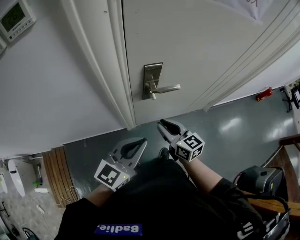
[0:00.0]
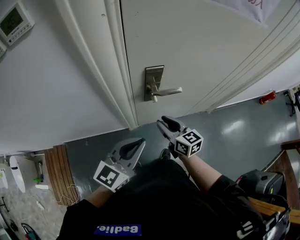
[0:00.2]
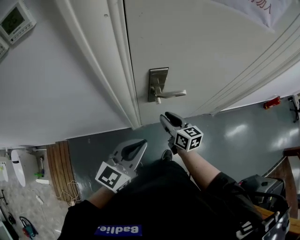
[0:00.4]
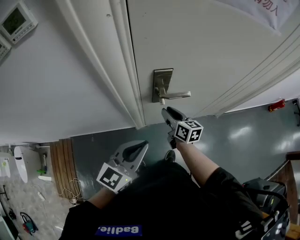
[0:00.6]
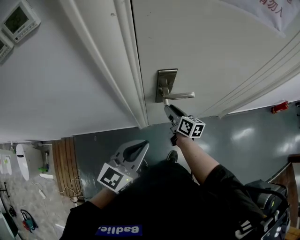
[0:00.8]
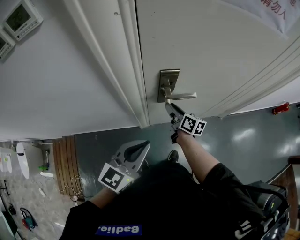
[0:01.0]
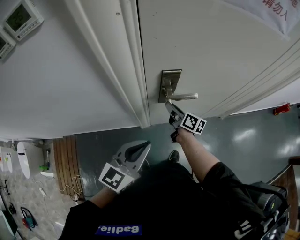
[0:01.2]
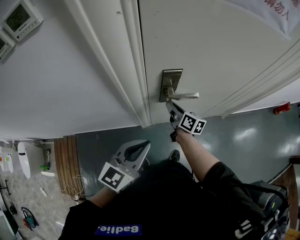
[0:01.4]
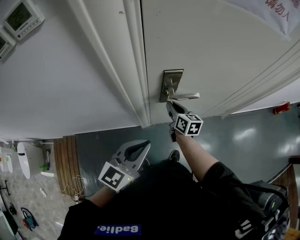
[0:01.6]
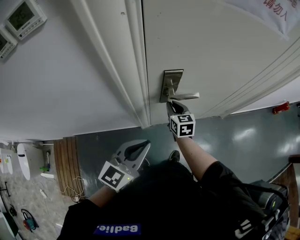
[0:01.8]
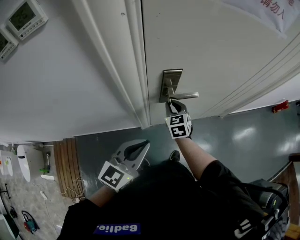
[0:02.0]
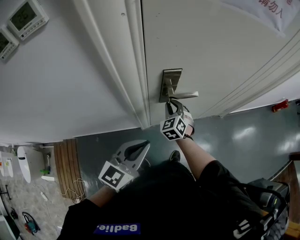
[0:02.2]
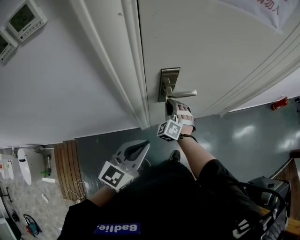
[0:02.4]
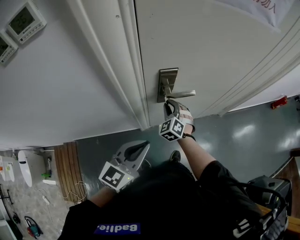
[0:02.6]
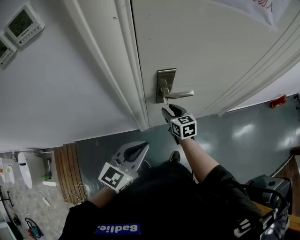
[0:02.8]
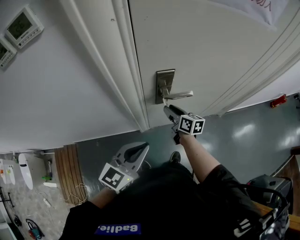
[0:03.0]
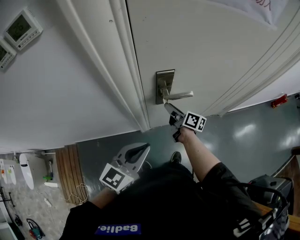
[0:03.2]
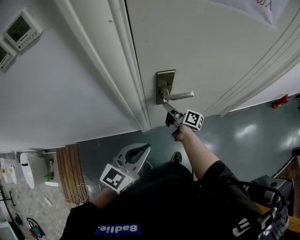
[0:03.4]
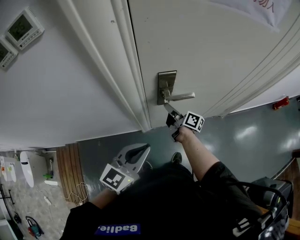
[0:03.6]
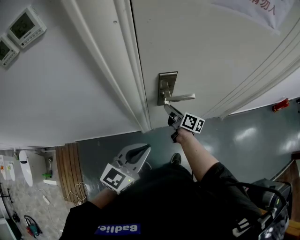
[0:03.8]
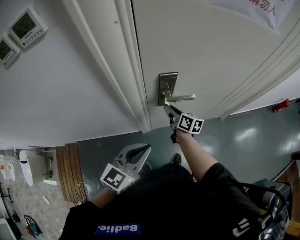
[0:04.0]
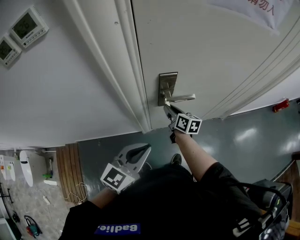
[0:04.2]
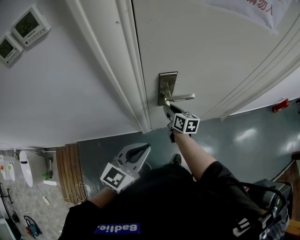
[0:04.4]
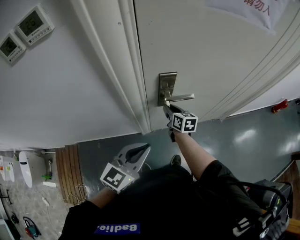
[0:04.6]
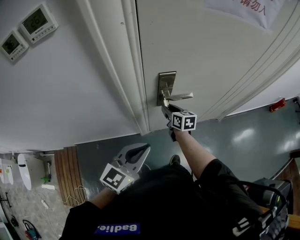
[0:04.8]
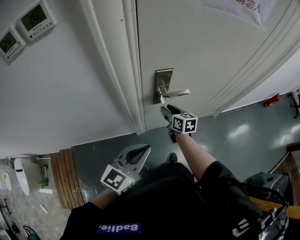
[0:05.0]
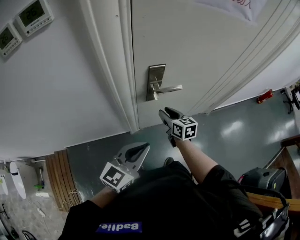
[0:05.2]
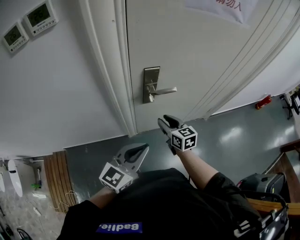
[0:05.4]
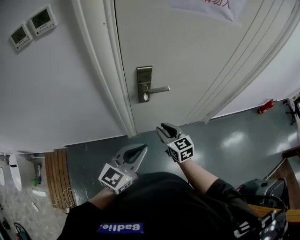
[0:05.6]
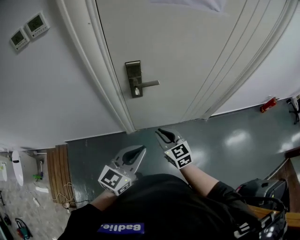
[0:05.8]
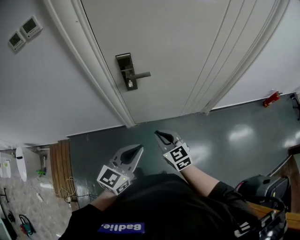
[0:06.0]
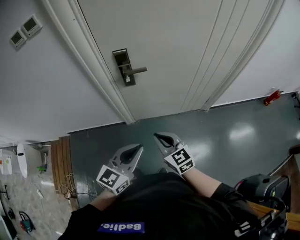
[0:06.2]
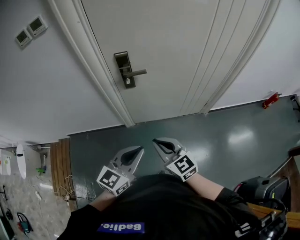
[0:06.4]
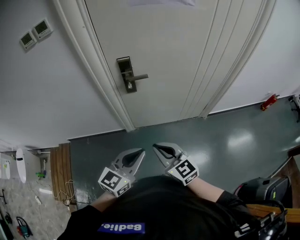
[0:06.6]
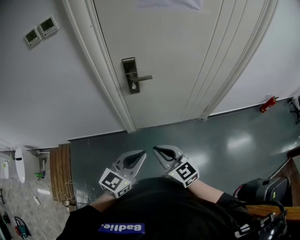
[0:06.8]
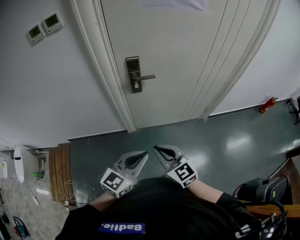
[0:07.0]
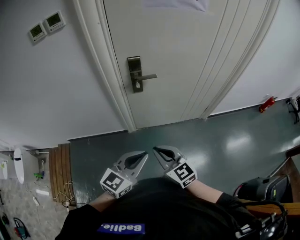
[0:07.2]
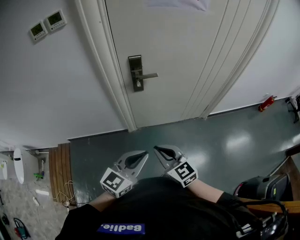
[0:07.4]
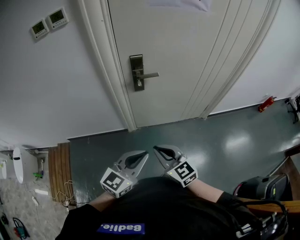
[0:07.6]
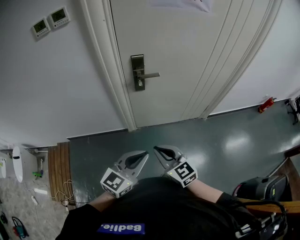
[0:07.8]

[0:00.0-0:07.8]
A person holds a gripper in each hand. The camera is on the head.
0:00.0 to 0:01.6: The right gripper is displaced forward and downward by about 15 cm.
0:01.6 to 0:03.2: The right gripper swivels about 30 degrees.
0:03.2 to 0:04.6: The right gripper turns by approximately 30 degrees.
0:04.6 to 0:06.2: The left gripper moves to the right and backward, roughly 25 cm; the right gripper shifts roughly 40 cm backward and to the right, and rotates approximately 40 degrees.
0:06.2 to 0:07.8: The right gripper travels backward and to the left by some 10 cm, while the left gripper is displaced to the left and backward by approximately 10 cm.

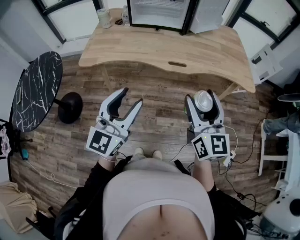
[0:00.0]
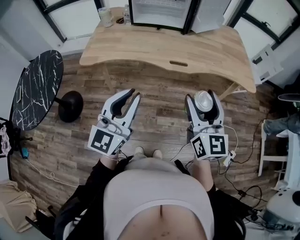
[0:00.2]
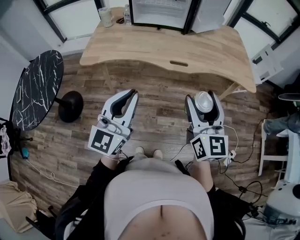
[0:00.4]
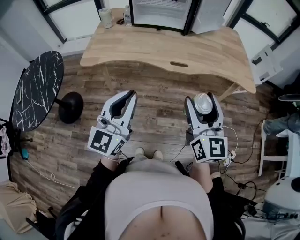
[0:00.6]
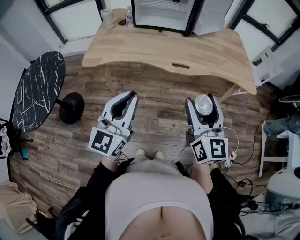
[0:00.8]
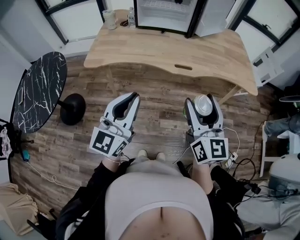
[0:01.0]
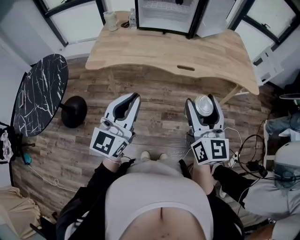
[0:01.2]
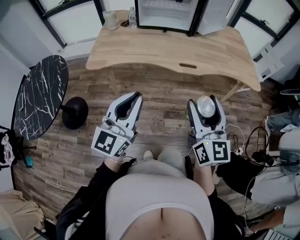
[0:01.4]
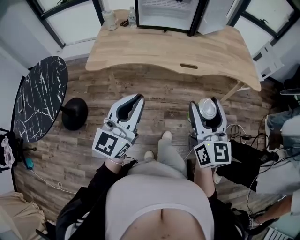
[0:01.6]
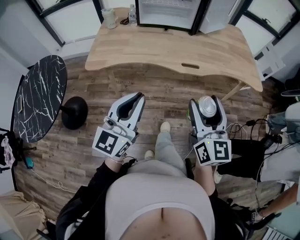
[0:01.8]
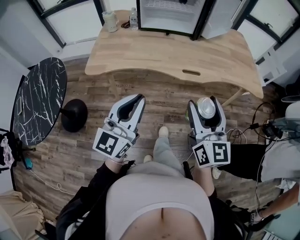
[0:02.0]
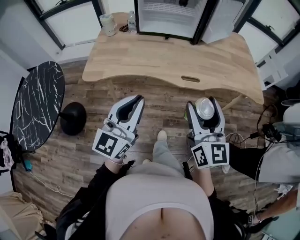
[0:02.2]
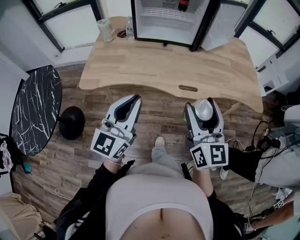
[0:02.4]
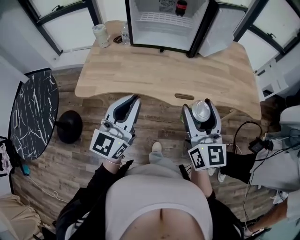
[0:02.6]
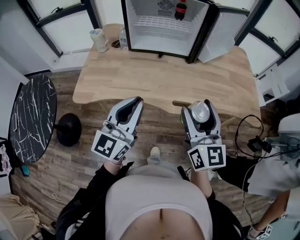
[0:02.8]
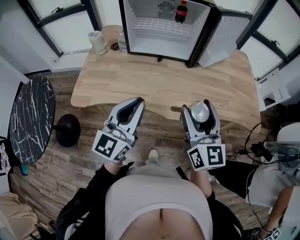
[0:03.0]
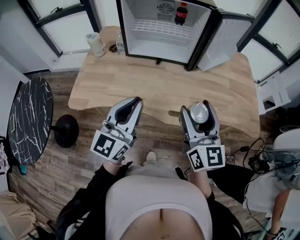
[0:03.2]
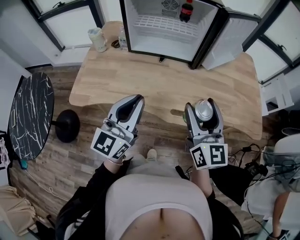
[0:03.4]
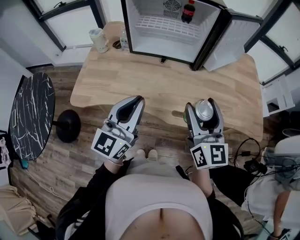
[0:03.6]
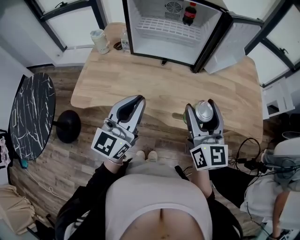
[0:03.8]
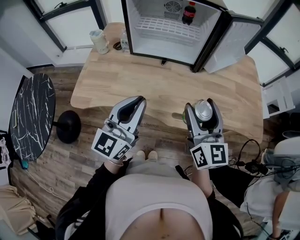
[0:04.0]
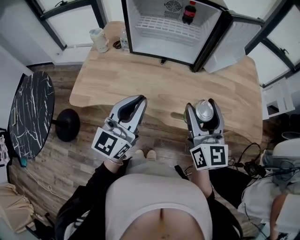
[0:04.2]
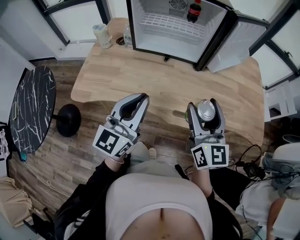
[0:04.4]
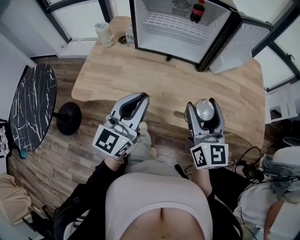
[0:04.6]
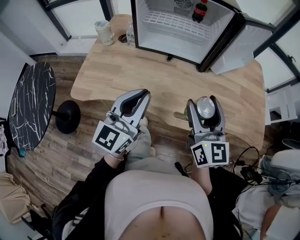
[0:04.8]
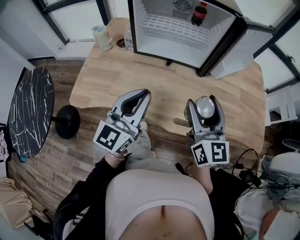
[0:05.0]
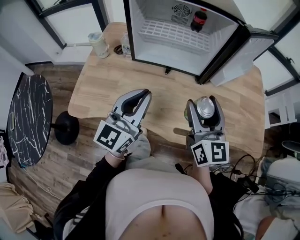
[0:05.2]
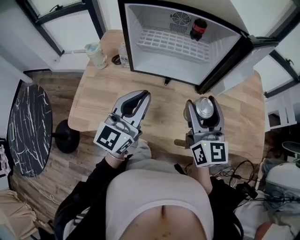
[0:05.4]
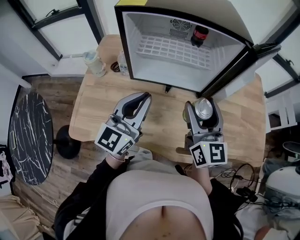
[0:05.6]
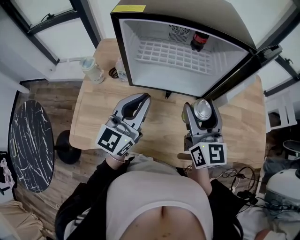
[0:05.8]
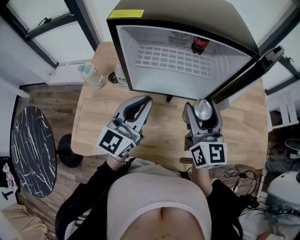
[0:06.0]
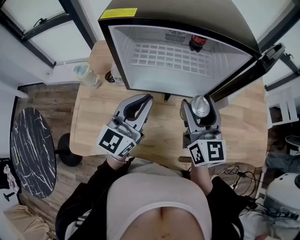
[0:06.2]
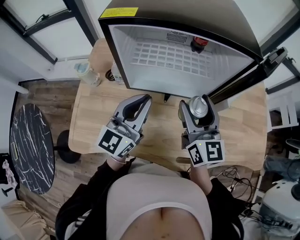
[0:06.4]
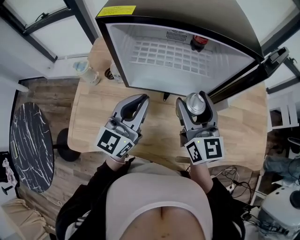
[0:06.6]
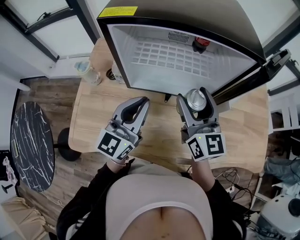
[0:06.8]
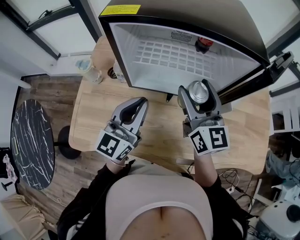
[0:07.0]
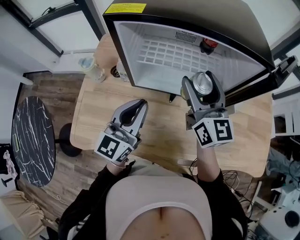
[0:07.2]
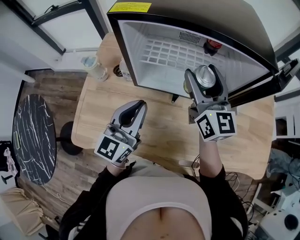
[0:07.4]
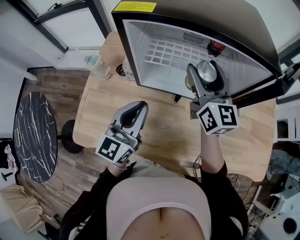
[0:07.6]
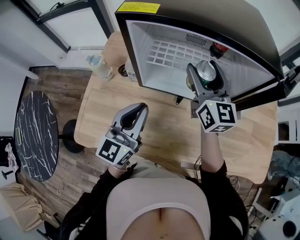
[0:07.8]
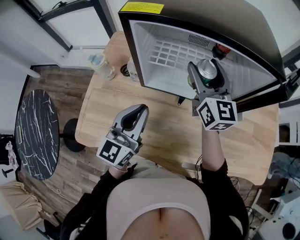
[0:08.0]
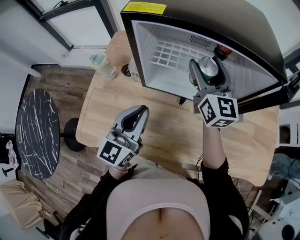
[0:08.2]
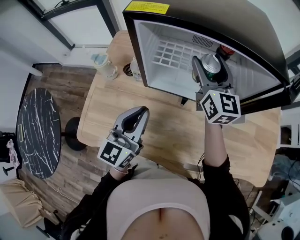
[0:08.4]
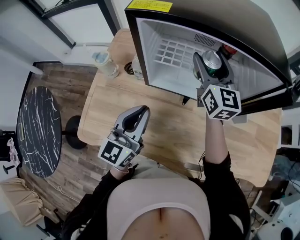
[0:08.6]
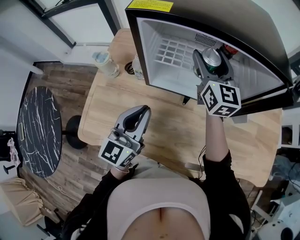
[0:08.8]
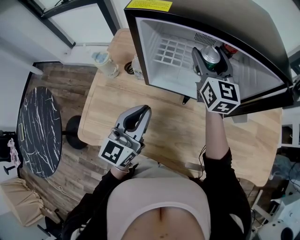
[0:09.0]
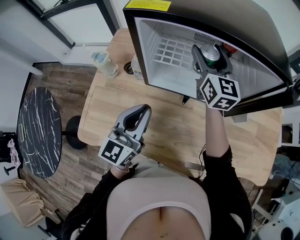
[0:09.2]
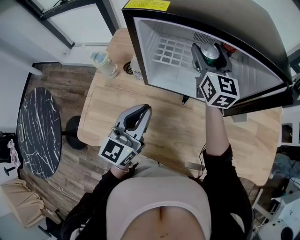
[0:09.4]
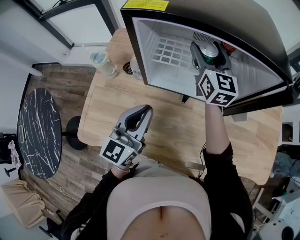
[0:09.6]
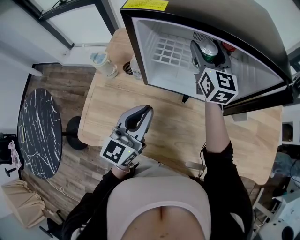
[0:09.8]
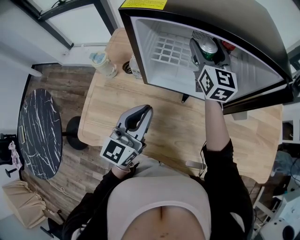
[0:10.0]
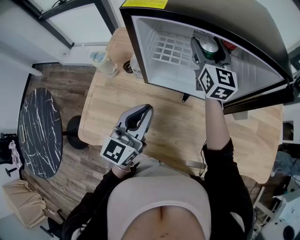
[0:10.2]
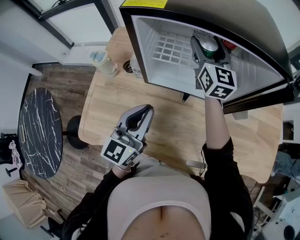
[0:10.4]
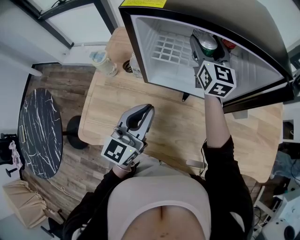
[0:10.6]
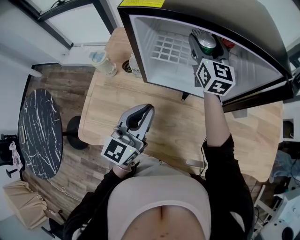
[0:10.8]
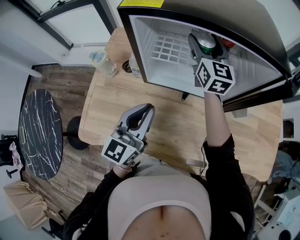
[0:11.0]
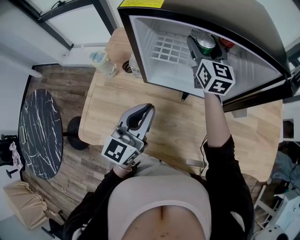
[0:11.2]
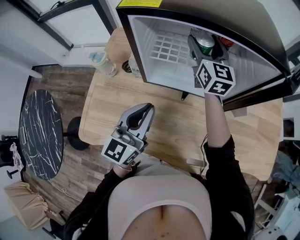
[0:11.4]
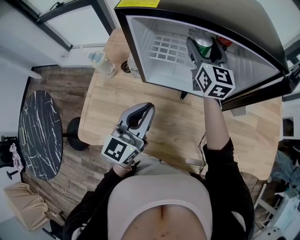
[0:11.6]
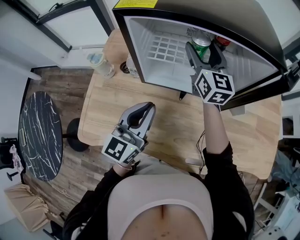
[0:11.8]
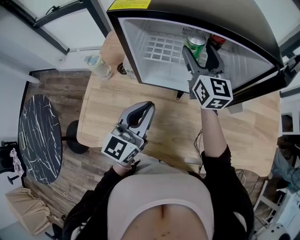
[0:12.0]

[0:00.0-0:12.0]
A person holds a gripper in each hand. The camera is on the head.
0:00.0 to 0:01.6: The grippers both shift to the left by about 5 cm. The left gripper closes its fingers.
0:01.6 to 0:03.0: The two grippers go about 25 cm forward.
0:03.0 to 0:04.4: The right gripper is displaced forward by some 5 cm.
0:04.4 to 0:06.0: Both grippers move forward, approximately 25 cm.
0:06.0 to 0:07.6: The right gripper shifts approximately 15 cm forward.
0:07.6 to 0:09.0: The right gripper heads forward, covering about 5 cm.
0:09.0 to 0:10.4: The grippers move only a little.
0:10.4 to 0:12.0: The right gripper moves approximately 5 cm.

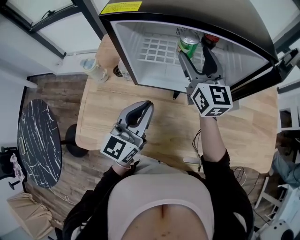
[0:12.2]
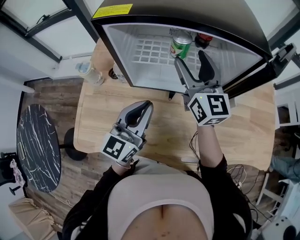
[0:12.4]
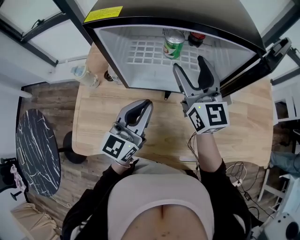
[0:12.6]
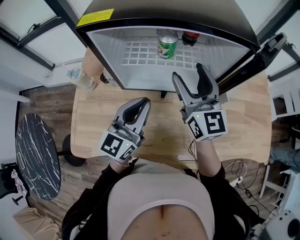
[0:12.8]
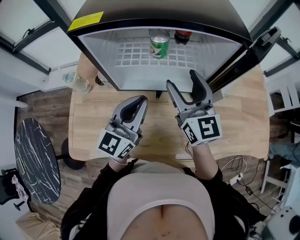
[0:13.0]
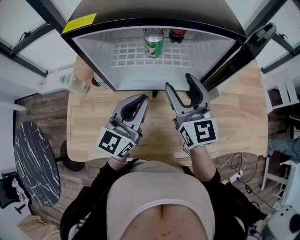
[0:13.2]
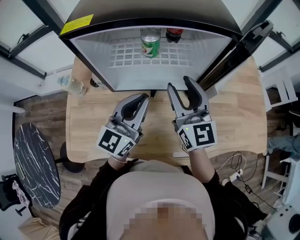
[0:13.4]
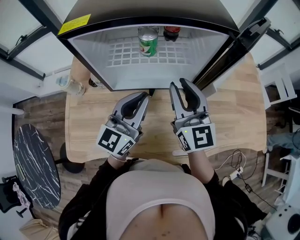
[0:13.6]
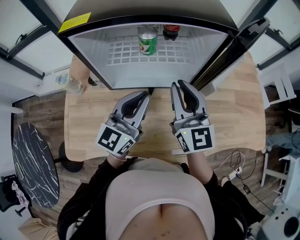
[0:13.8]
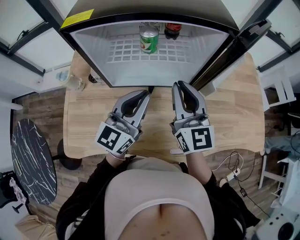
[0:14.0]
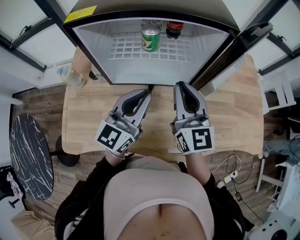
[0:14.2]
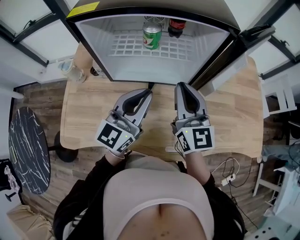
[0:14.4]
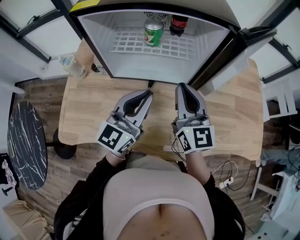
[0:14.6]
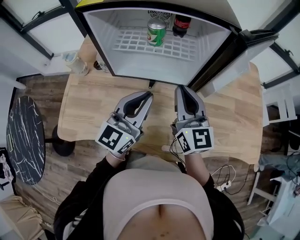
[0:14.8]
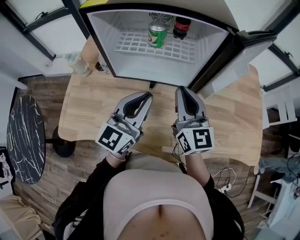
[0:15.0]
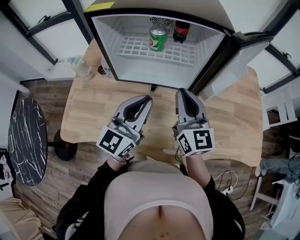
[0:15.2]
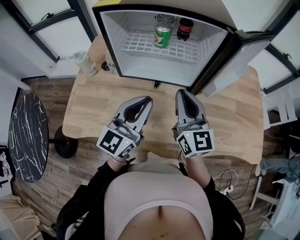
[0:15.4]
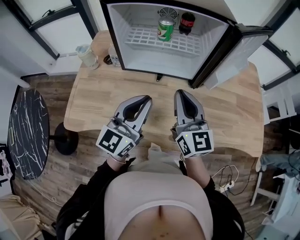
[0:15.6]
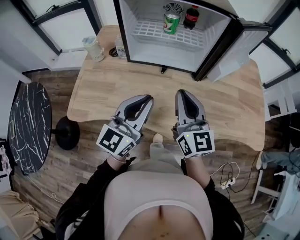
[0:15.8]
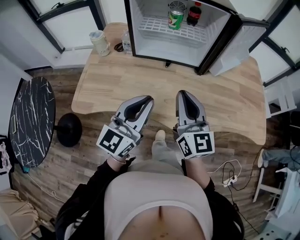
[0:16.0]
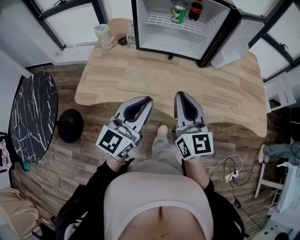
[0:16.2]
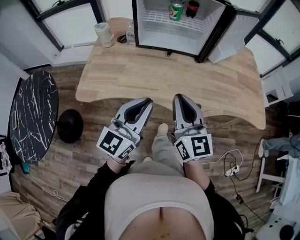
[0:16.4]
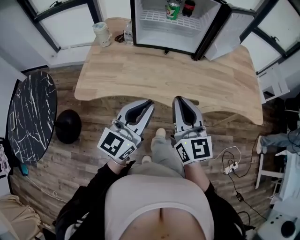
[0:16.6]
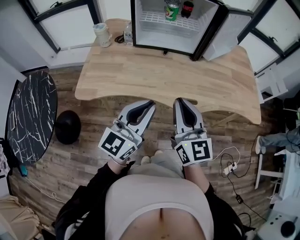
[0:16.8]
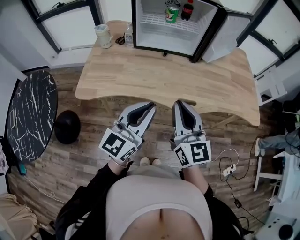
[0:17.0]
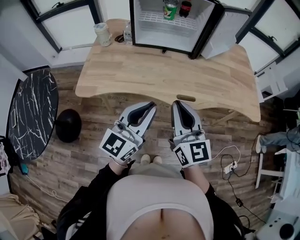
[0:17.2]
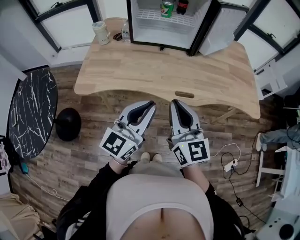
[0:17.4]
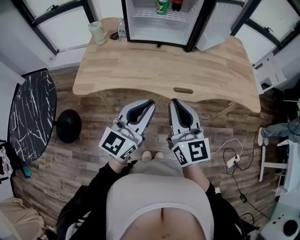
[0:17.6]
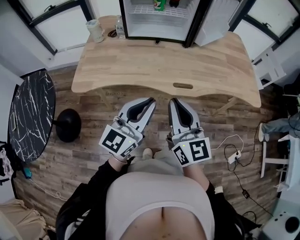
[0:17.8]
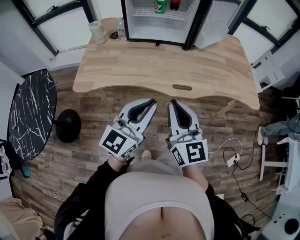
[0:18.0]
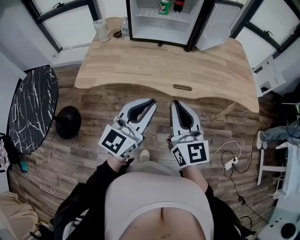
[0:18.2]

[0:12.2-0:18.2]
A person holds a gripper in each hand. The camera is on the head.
0:12.2 to 0:13.8: The left gripper shifts some 10 cm to the right; the right gripper shifts about 15 cm backward and to the right, and closes its fingers.
0:13.8 to 0:15.2: The left gripper is displaced backward by roughly 5 cm; the right gripper shifts by roughly 5 cm.
0:15.2 to 0:16.6: Both grippers move backward, some 30 cm.
0:16.6 to 0:18.2: The right gripper shifts roughly 10 cm backward, while the left gripper heads backward and to the right, covering approximately 10 cm.
